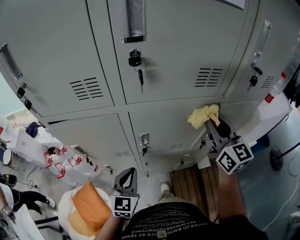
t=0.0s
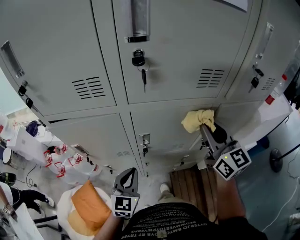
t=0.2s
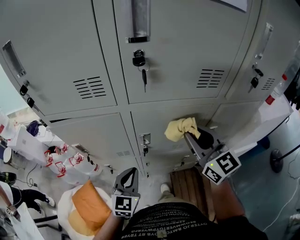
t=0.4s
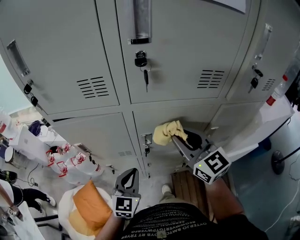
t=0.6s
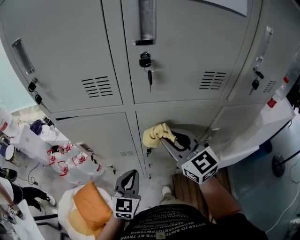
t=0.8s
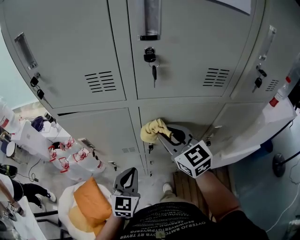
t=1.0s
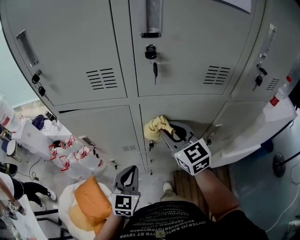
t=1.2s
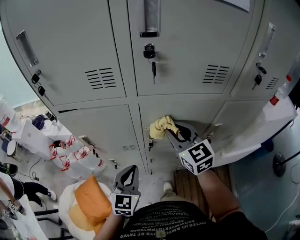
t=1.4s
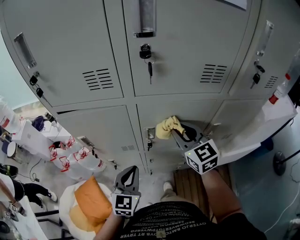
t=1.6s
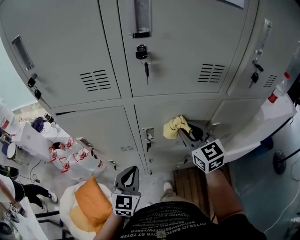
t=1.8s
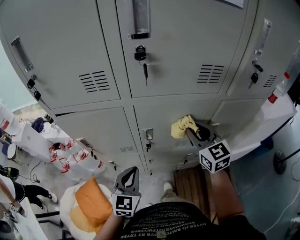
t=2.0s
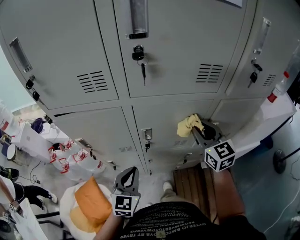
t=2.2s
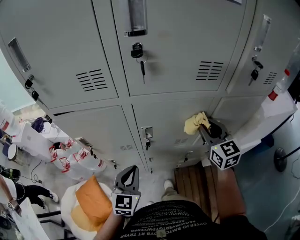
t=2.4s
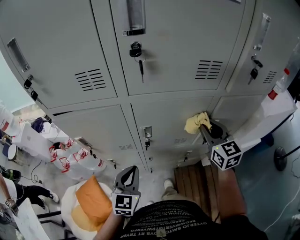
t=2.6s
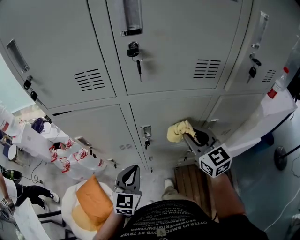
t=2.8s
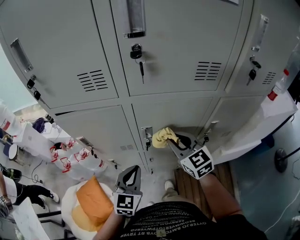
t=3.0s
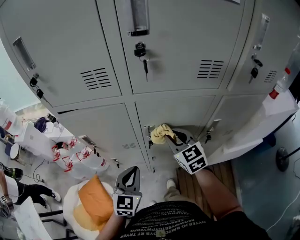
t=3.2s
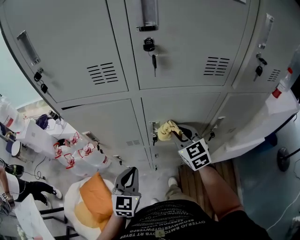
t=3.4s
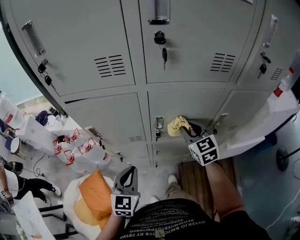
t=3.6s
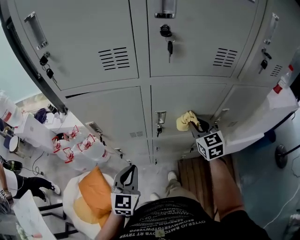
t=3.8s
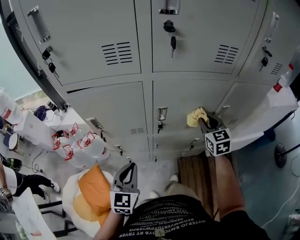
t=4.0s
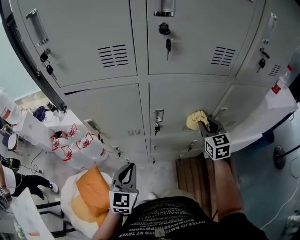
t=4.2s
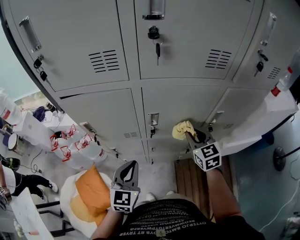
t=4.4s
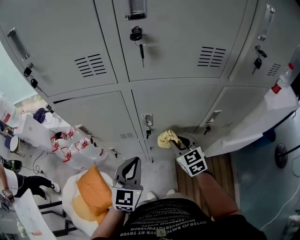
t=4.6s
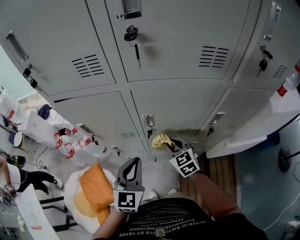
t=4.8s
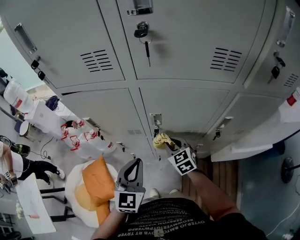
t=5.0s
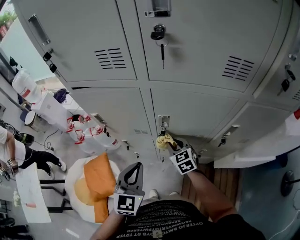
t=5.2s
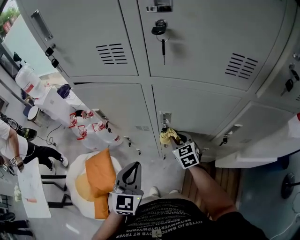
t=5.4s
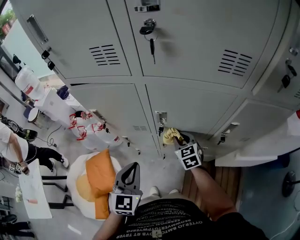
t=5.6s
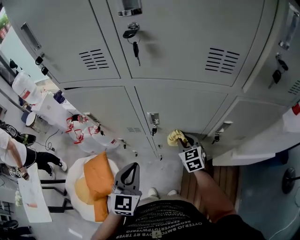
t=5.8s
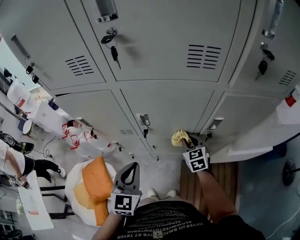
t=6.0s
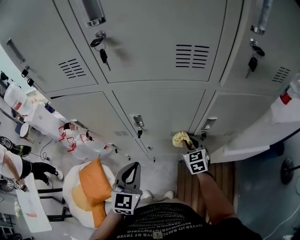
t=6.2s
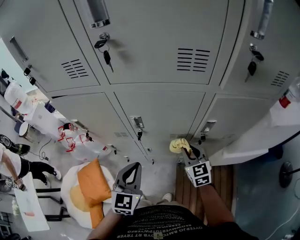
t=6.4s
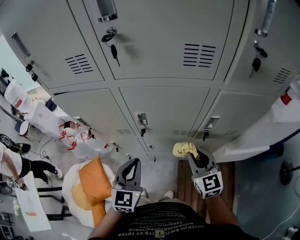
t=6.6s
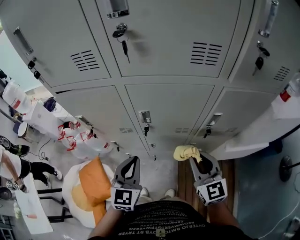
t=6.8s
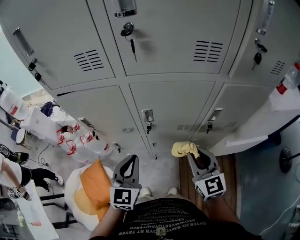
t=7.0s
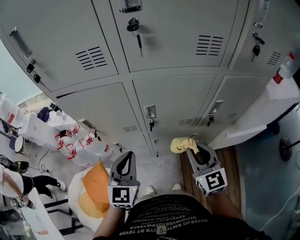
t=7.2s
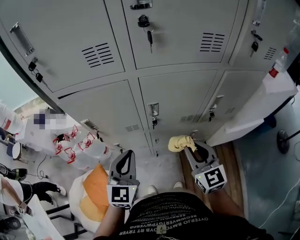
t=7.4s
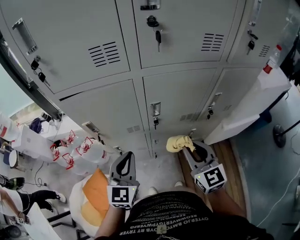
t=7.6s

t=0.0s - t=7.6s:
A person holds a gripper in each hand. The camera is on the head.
t=0.0s - t=1.6s: The right gripper travels to the left and downward by some 15 cm, and changes its angle by roughly 20 degrees.
t=1.6s - t=3.0s: The right gripper reaches approximately 15 cm to the right, then returns.
t=3.0s - t=4.6s: The right gripper is displaced downward by roughly 10 cm, and reaches about 10 cm to the right, then returns; the left gripper moves roughly 10 cm to the left and comes back.
t=4.6s - t=6.0s: The right gripper heads to the right and downward, covering roughly 10 cm.
t=6.0s - t=7.6s: The right gripper shifts some 25 cm upward, backward and to the left, and turns by approximately 20 degrees; the left gripper travels to the left by roughly 15 cm.

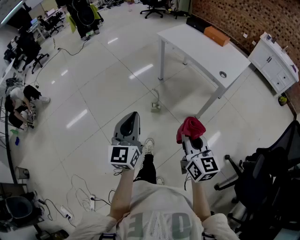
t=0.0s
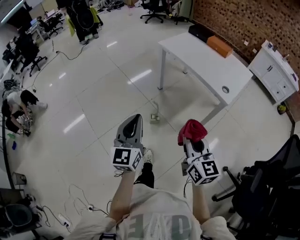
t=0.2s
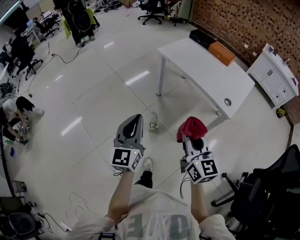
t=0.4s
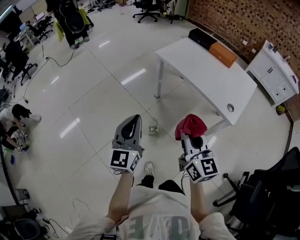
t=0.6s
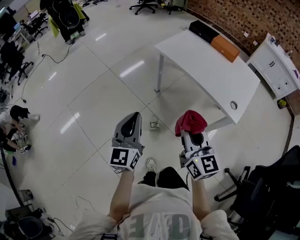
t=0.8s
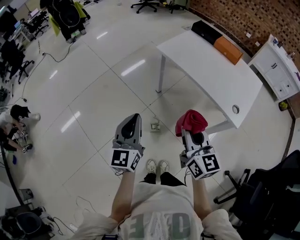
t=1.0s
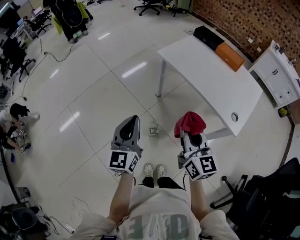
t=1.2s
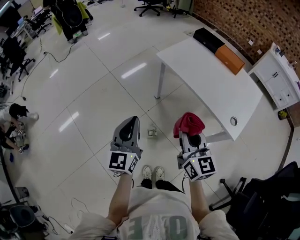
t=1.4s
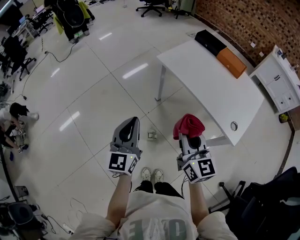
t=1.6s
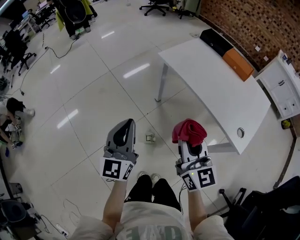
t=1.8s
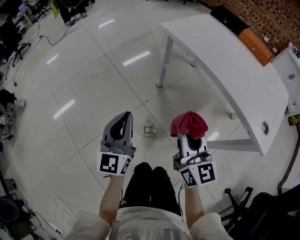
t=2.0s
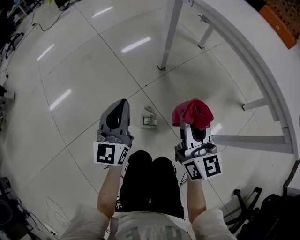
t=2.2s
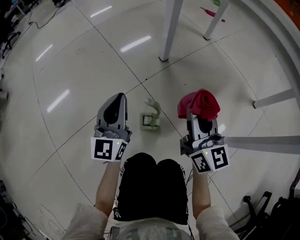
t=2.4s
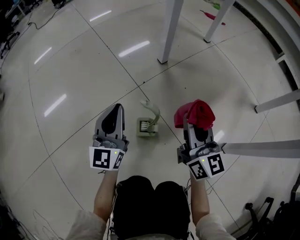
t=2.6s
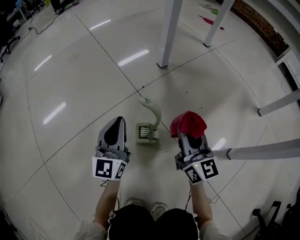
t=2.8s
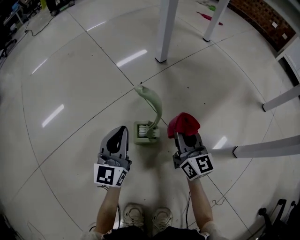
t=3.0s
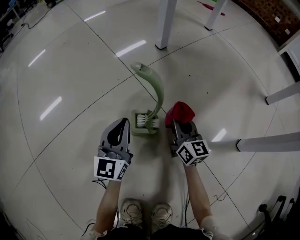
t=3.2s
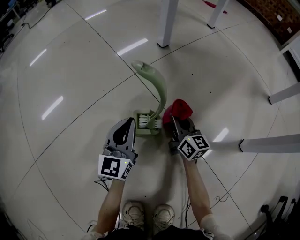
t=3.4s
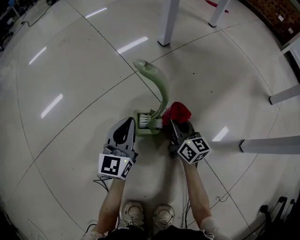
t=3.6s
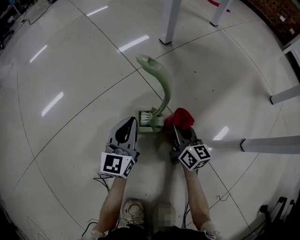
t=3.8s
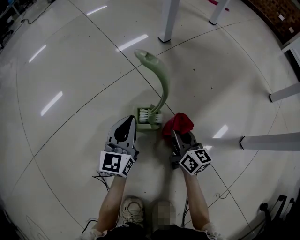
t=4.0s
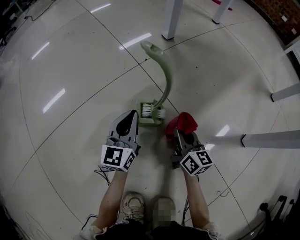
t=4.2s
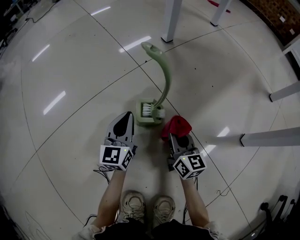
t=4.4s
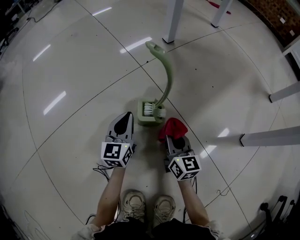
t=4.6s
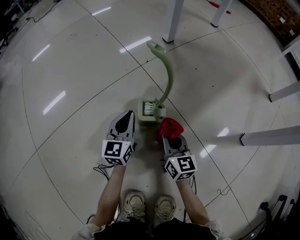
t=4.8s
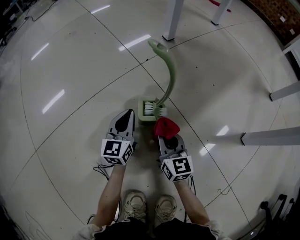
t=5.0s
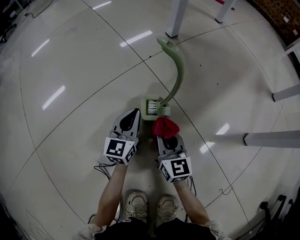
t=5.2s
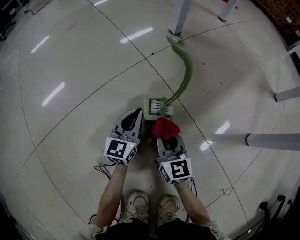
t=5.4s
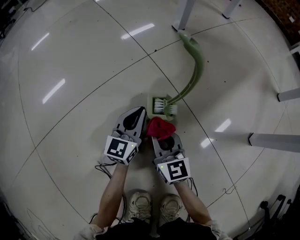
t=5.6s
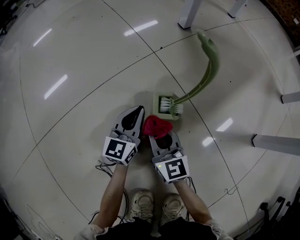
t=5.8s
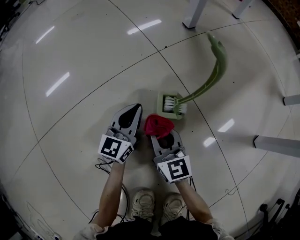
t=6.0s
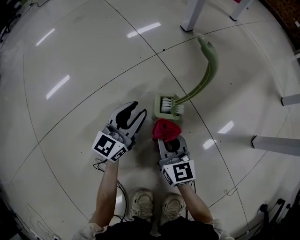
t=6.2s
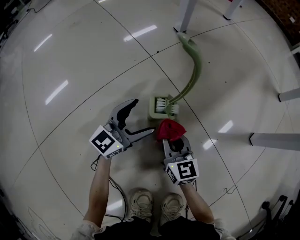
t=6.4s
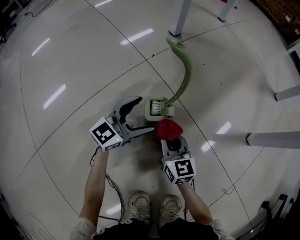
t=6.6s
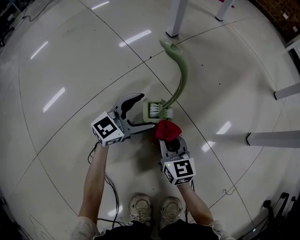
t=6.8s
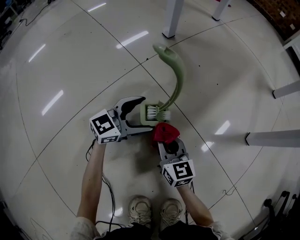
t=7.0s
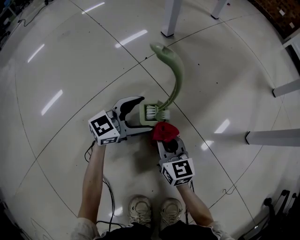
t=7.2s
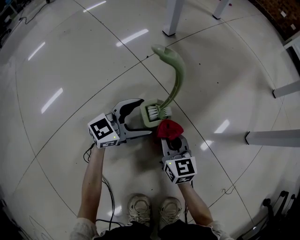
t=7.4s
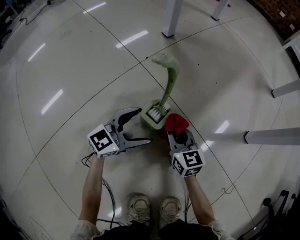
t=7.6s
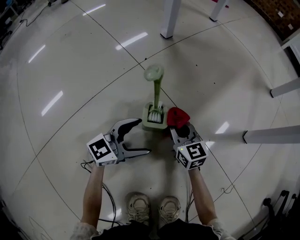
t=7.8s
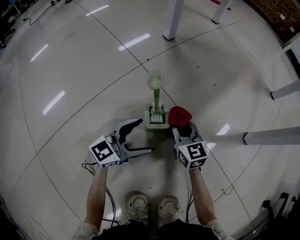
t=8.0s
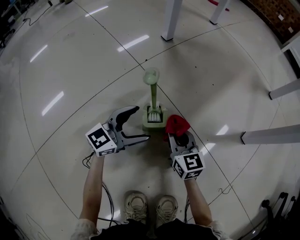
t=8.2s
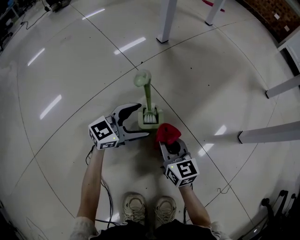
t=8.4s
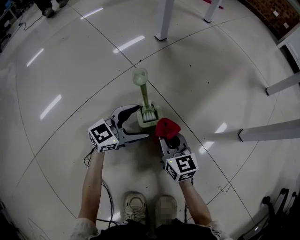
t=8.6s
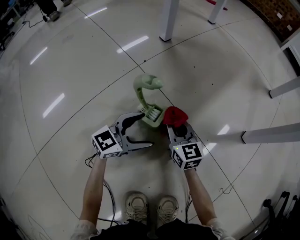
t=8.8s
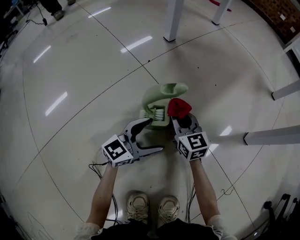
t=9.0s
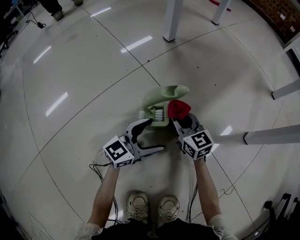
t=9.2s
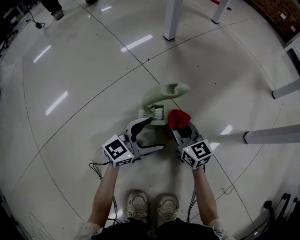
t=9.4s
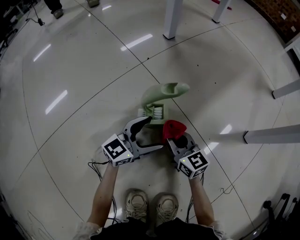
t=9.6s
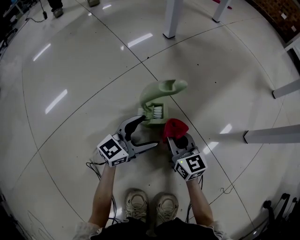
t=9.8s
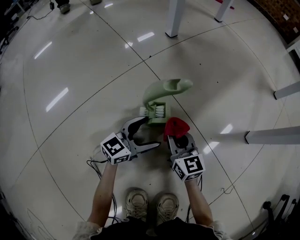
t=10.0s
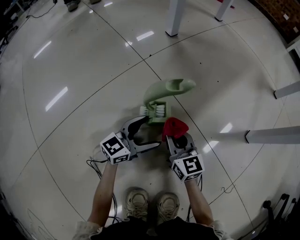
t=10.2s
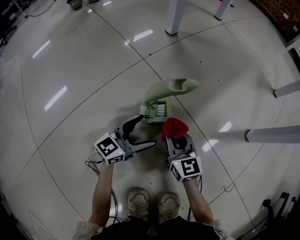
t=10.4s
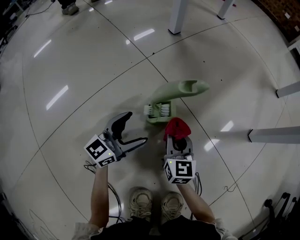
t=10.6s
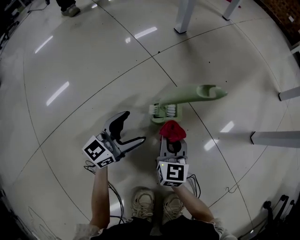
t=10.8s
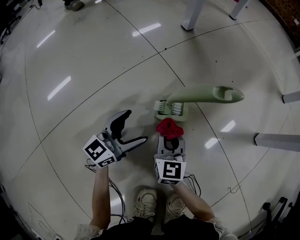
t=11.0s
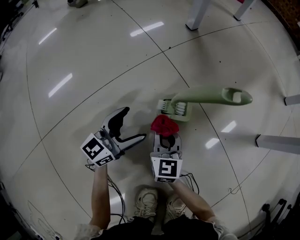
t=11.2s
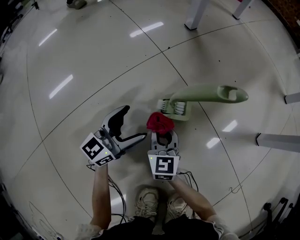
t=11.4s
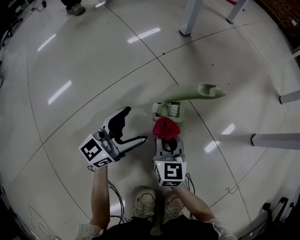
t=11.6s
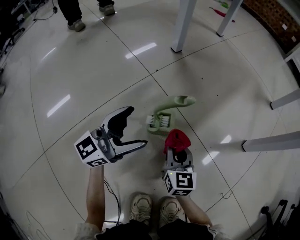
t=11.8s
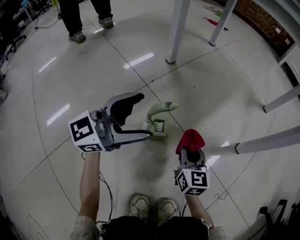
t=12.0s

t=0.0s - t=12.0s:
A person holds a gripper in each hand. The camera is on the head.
t=0.0s - t=1.6s: The two grippers travel together, forward, roughly 40 cm.
t=1.6s - t=3.0s: Both grippers move downward, roughly 80 cm.
t=3.0s - t=4.4s: The left gripper moves downward, about 10 cm, while the right gripper moves downward and backward, some 15 cm.
t=4.4s - t=6.0s: The right gripper moves to the left, approximately 15 cm.
t=6.0s - t=7.6s: The left gripper ends up approximately 10 cm from where it was, turns by about 50 degrees, and opens up, while the right gripper ends up roughly 10 cm from where it was.
t=7.6s - t=9.0s: The right gripper ends up some 5 cm from where it was. The left gripper is displaced to the right by approximately 5 cm.
t=9.0s - t=10.4s: The right gripper is displaced backward by approximately 10 cm.
t=10.4s - t=12.0s: The left gripper heads upward, covering approximately 25 cm, and changes its angle by roughly 20 degrees. The right gripper travels upward and to the right by roughly 10 cm.

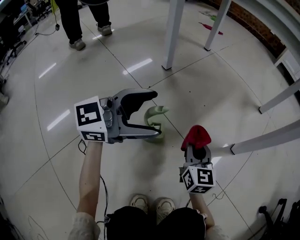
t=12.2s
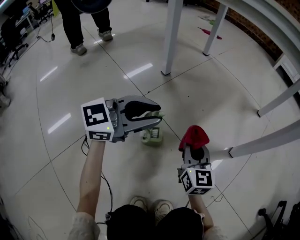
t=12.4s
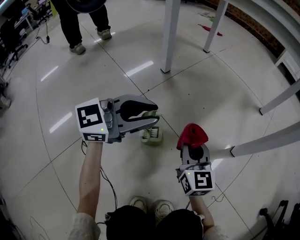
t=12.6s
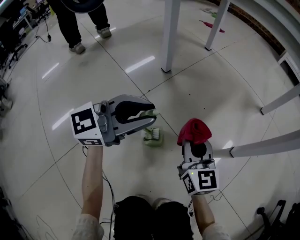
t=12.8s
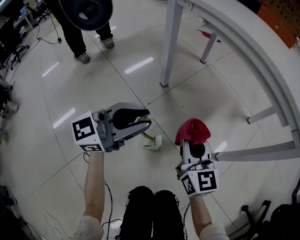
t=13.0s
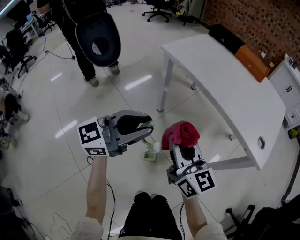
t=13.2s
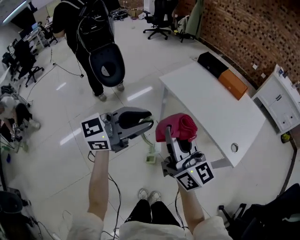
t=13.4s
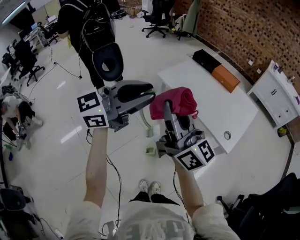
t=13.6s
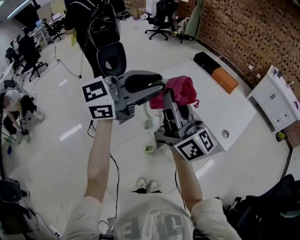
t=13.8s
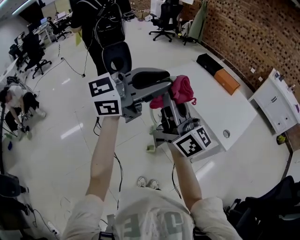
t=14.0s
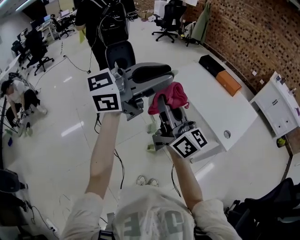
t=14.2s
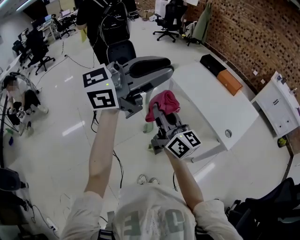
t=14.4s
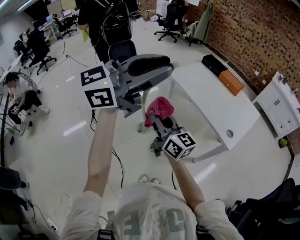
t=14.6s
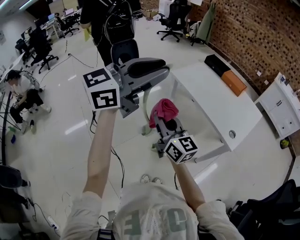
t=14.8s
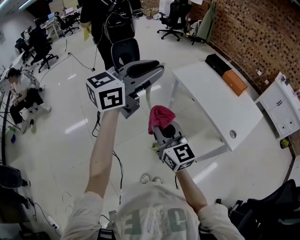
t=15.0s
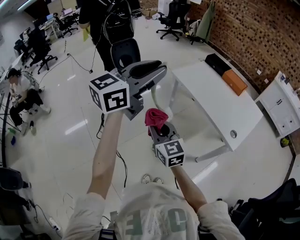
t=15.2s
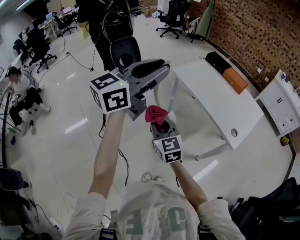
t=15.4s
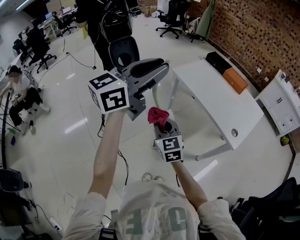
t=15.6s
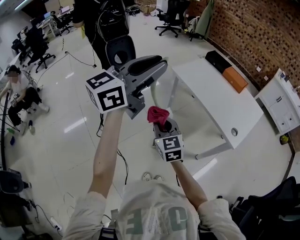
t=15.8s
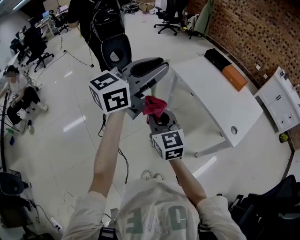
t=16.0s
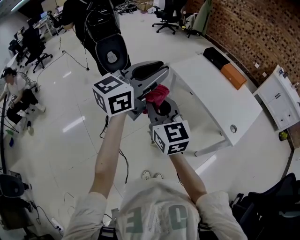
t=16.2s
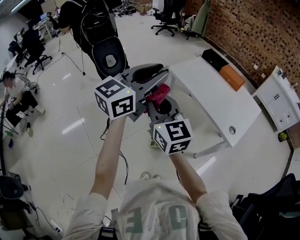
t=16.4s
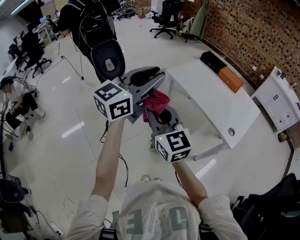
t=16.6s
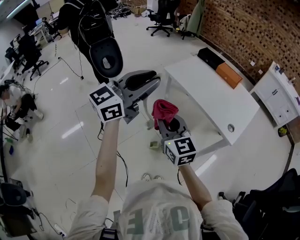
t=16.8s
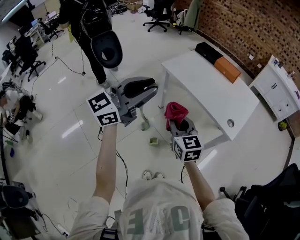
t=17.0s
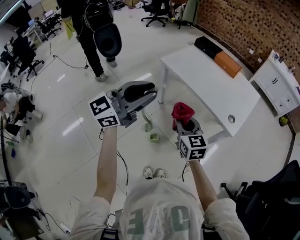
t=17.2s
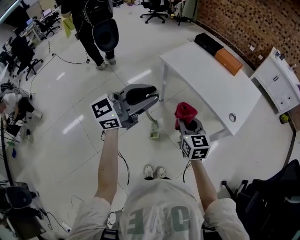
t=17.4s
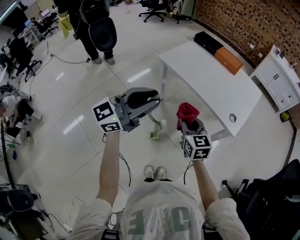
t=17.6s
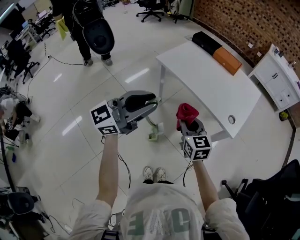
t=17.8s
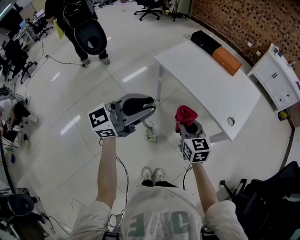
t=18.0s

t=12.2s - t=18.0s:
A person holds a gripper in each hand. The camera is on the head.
t=12.2s - t=13.6s: The two grippers go approximately 90 cm upward. The right gripper tips its fingers upward by approximately 40 degrees, while the left gripper closes up.
t=13.6s - t=15.0s: The right gripper moves downward, backward and to the left, approximately 20 cm, and changes its angle by about 30 degrees. Meanwhile the left gripper swivels roughly 20 degrees.
t=15.0s - t=16.6s: The right gripper goes downward and returns, roughly 10 cm each way.
t=16.6s - t=18.0s: The right gripper shifts approximately 25 cm downward, to the right and forward, and rotates approximately 30 degrees. Meanwhile the left gripper heads downward, covering approximately 10 cm, and turns by some 30 degrees.
